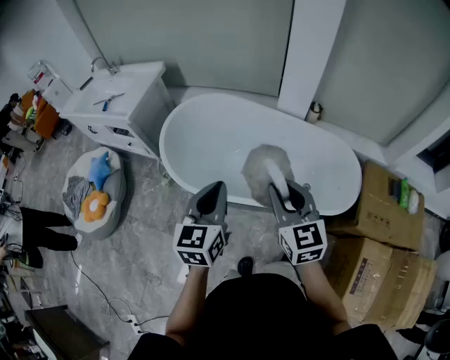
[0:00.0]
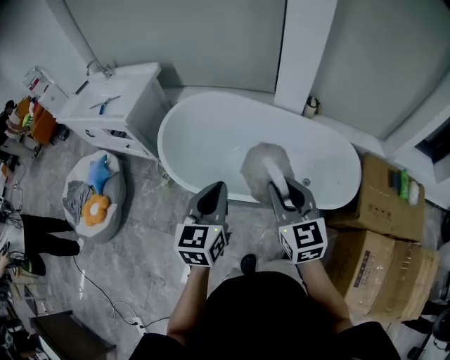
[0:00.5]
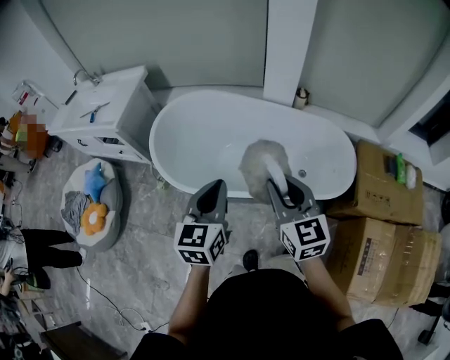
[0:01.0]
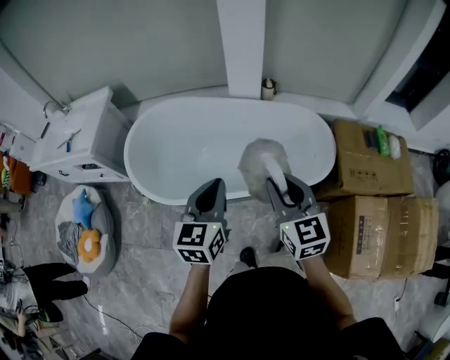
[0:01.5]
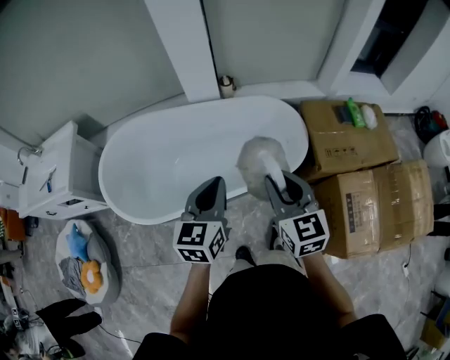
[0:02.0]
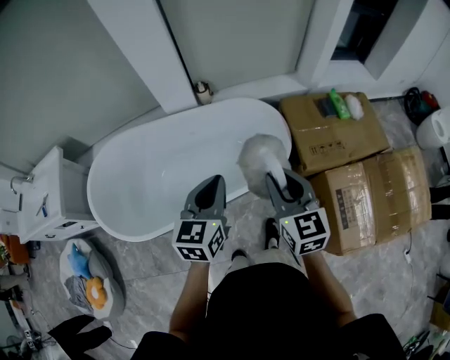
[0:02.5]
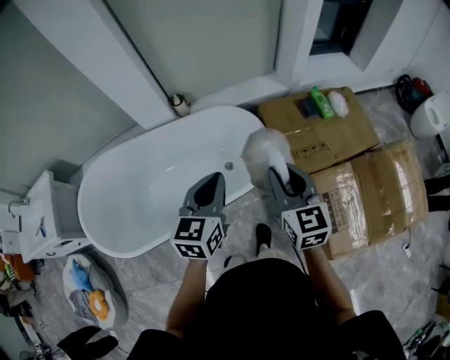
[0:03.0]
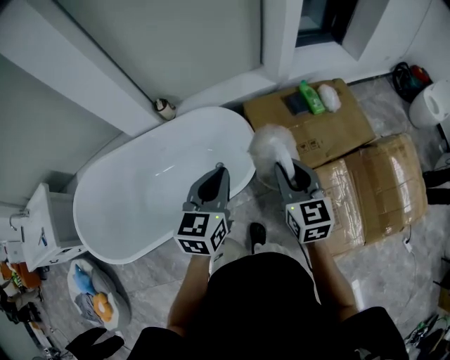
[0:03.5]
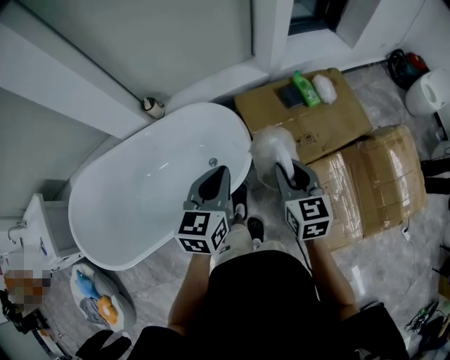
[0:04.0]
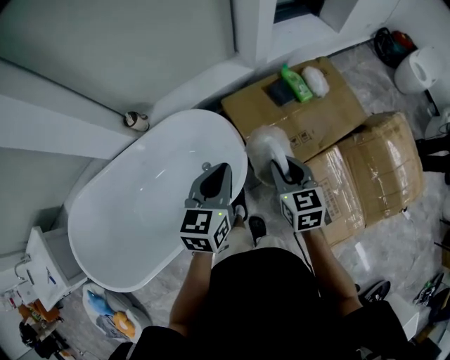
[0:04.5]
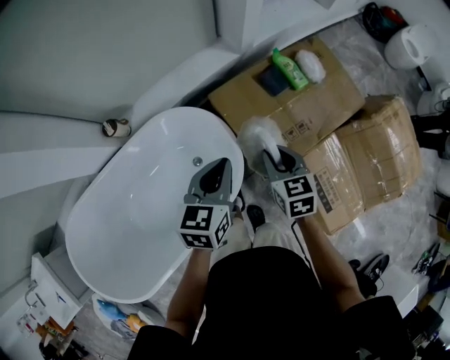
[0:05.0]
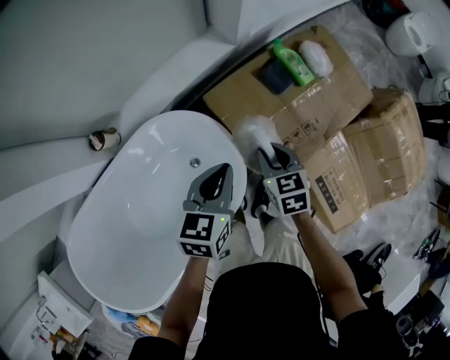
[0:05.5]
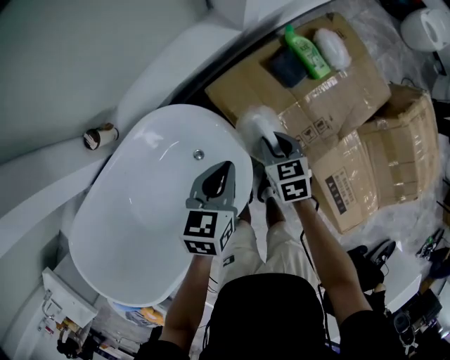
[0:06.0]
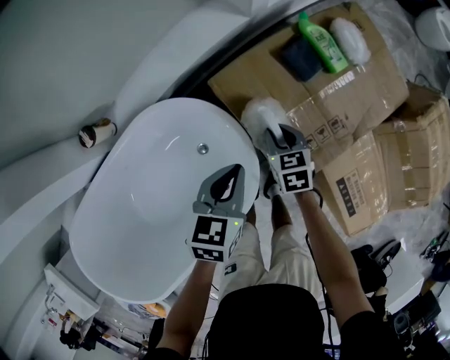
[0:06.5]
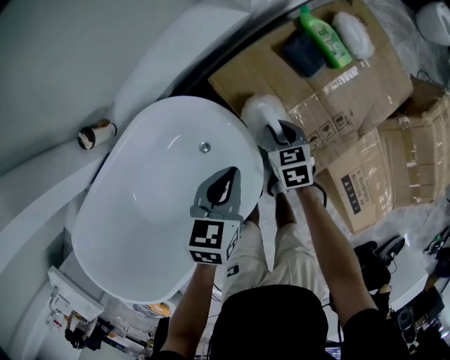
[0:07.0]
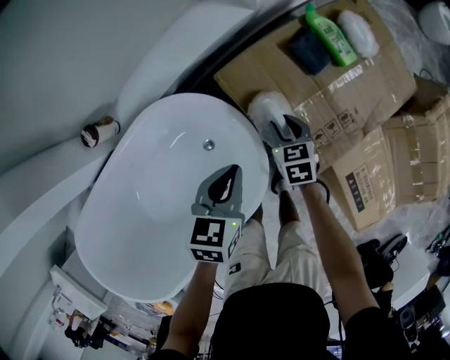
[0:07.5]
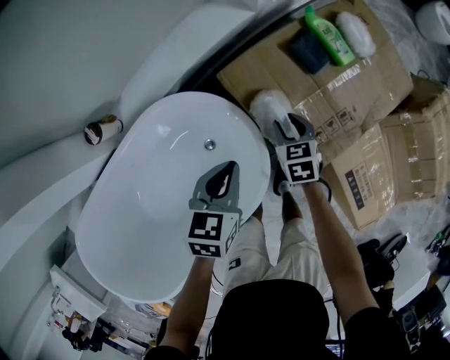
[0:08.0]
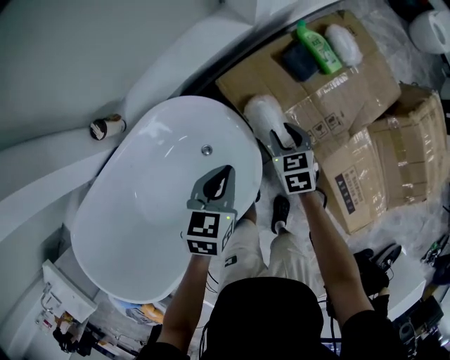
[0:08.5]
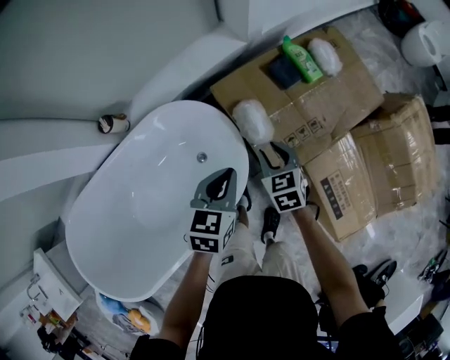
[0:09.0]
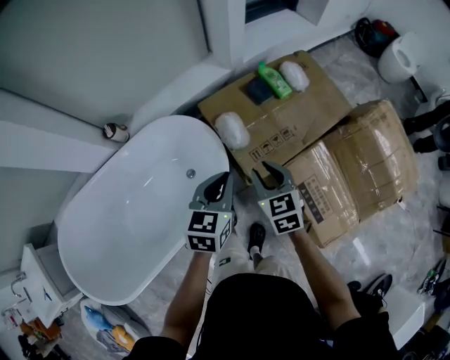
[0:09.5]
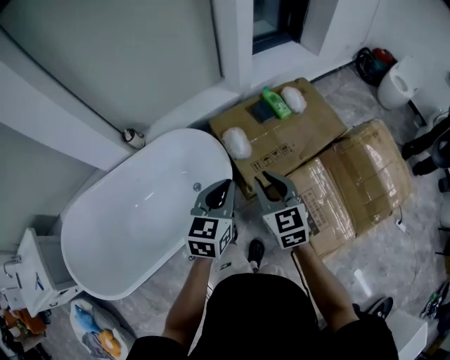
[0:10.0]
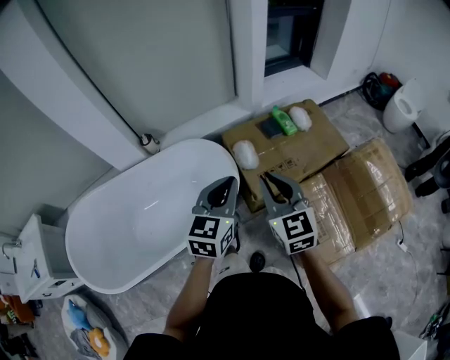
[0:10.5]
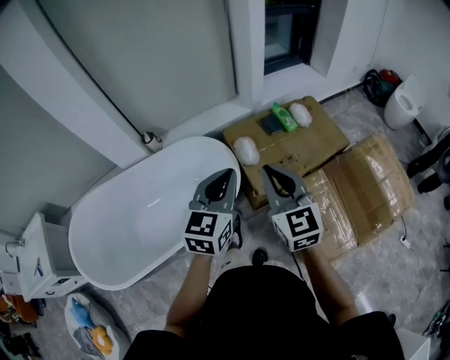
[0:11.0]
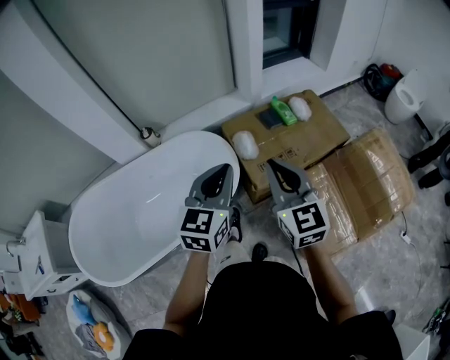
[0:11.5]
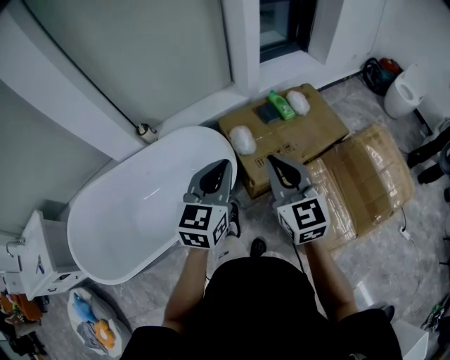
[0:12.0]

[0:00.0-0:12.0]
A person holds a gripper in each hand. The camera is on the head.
0:00.0 to 0:02.0: The left gripper shifts by about 25 cm, and swivels roughly 30 degrees; the right gripper shifts by roughly 20 cm, and turns by about 30 degrees.
0:02.0 to 0:04.0: The two grippers travel together, to the right and forward, approximately 40 cm. The right gripper rotates roughly 20 degrees.
0:04.0 to 0:06.0: The left gripper moves forward and downward, roughly 35 cm, and turns by roughly 30 degrees. Meanwhile the right gripper goes approximately 40 cm downward and forward, and swivels approximately 30 degrees.
0:06.0 to 0:08.0: The right gripper goes approximately 10 cm downward, while the left gripper travels downward by some 5 cm.
0:08.0 to 0:10.0: The left gripper shifts about 35 cm upward, backward and to the right, and changes its angle by about 30 degrees. The right gripper moves upward and backward, roughly 50 cm, and angles its fingers upward, by roughly 30 degrees.
0:10.0 to 0:12.0: The left gripper is displaced upward by about 10 cm, while the right gripper travels upward and backward by some 15 cm.

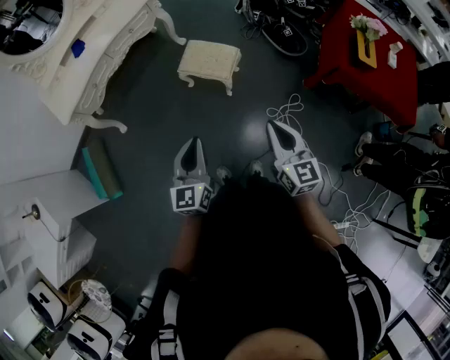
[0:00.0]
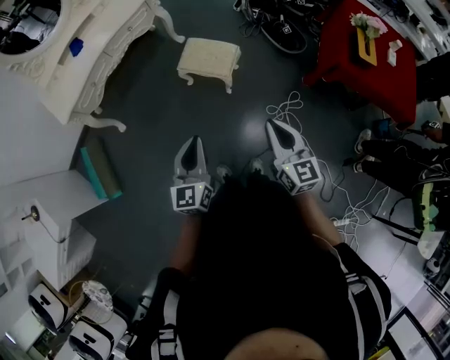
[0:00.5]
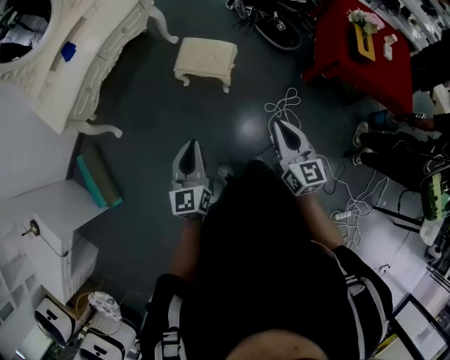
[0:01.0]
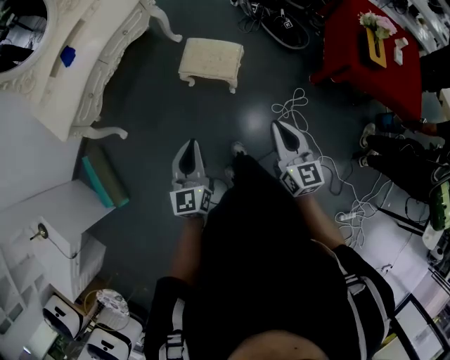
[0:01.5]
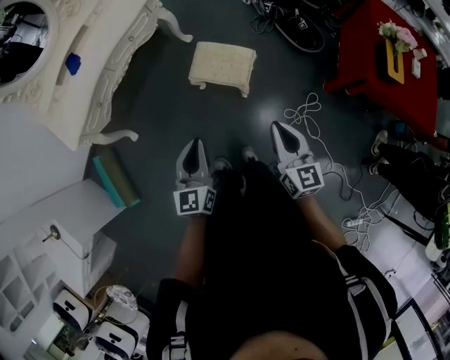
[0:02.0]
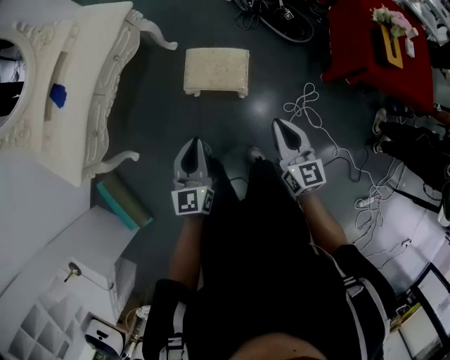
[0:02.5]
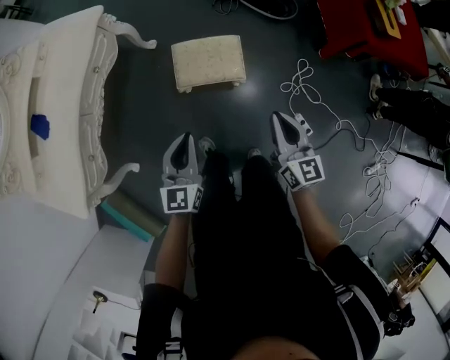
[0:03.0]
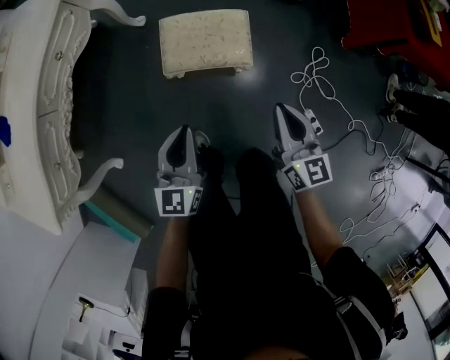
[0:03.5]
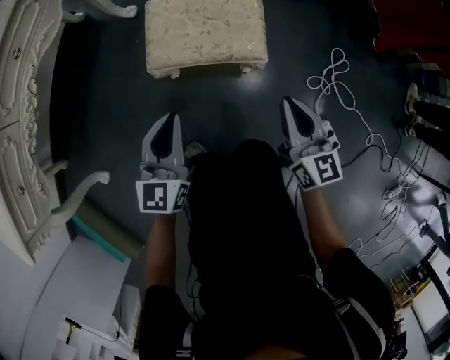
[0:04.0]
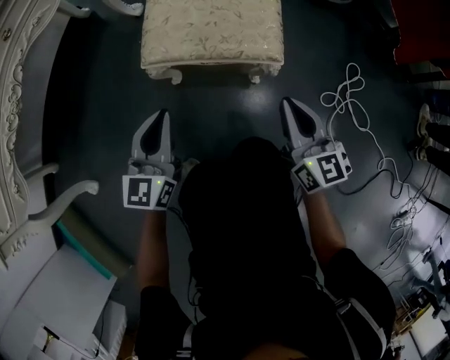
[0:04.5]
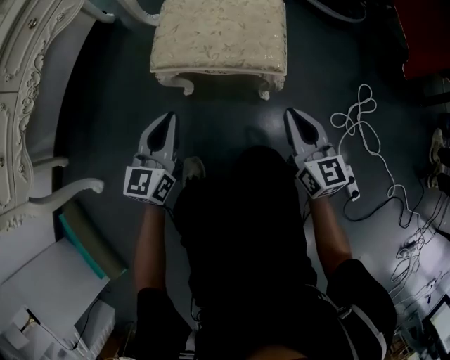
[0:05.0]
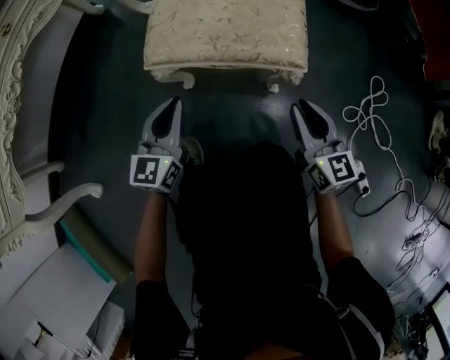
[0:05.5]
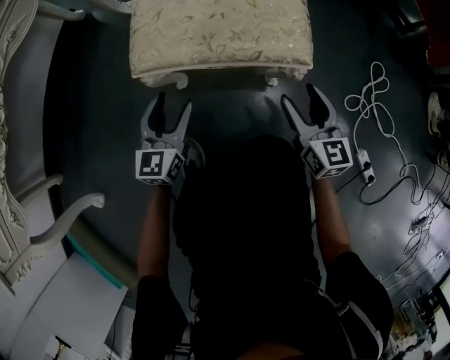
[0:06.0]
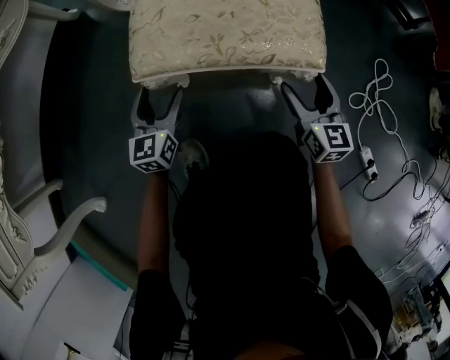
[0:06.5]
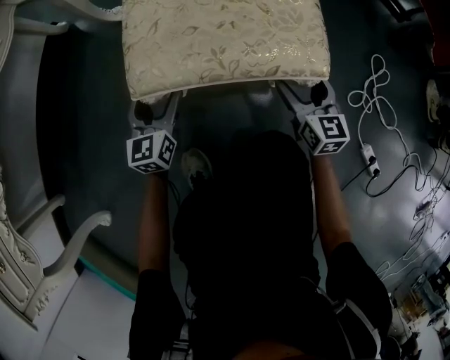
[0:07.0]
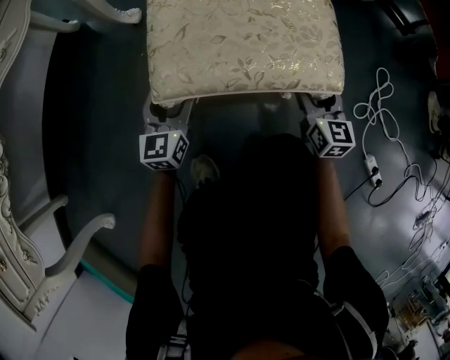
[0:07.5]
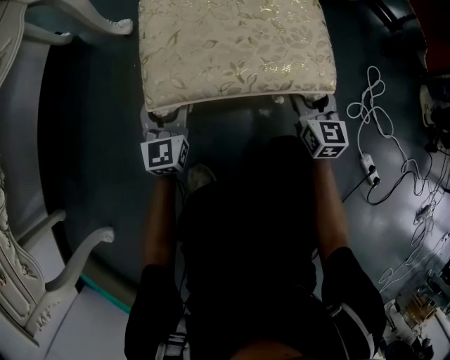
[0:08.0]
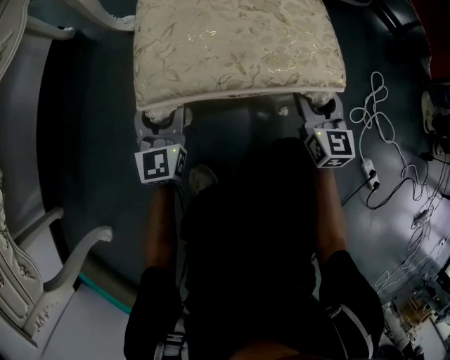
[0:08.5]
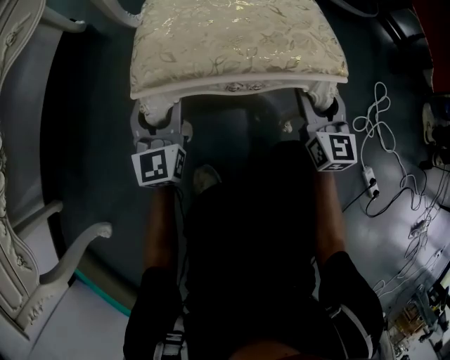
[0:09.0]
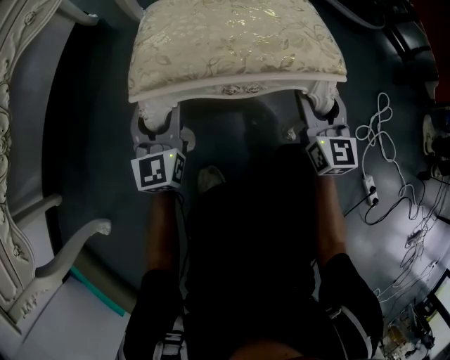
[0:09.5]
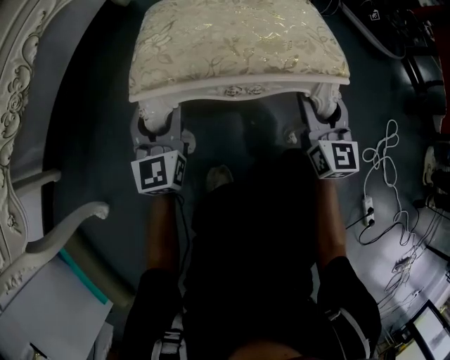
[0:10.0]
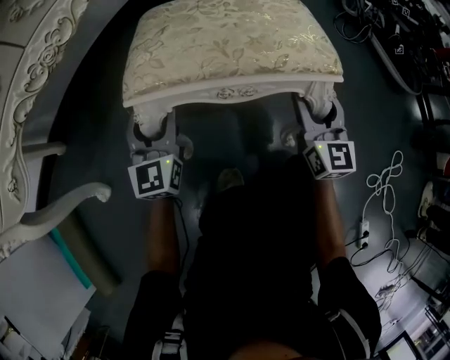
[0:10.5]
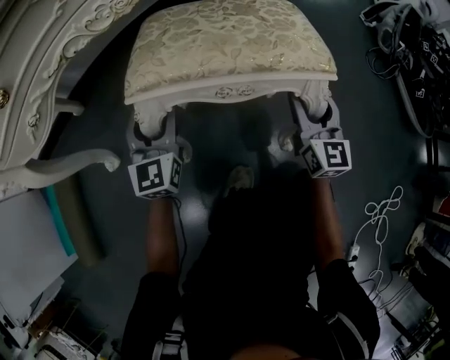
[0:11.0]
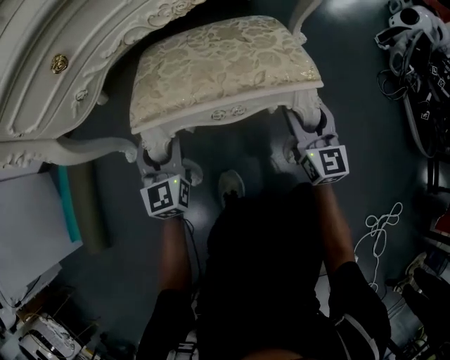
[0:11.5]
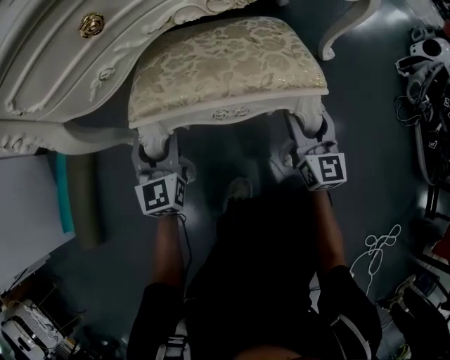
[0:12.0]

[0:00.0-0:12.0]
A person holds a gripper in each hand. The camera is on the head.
0:00.0 to 0:02.0: The two grippers go roughly 15 cm forward.
0:02.0 to 0:04.0: The two grippers go roughly 40 cm downward. The left gripper rotates approximately 30 degrees.
0:04.0 to 0:06.0: Both grippers move downward, some 25 cm. The left gripper opens up. Meanwhile the right gripper opens its fingers.
0:06.0 to 0:08.0: The left gripper shifts about 10 cm forward, while the right gripper travels forward and downward by some 10 cm.
0:08.0 to 0:10.0: Both grippers move to the left and upward, roughly 20 cm.
0:10.0 to 0:12.0: The left gripper swings left and right, about 15 cm each way, with 2 reversals; the right gripper goes left and right, roughly 15 cm each way, reversing 2 times.

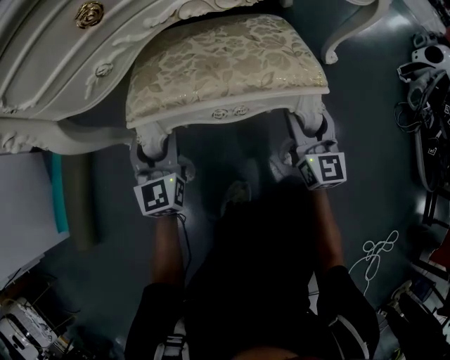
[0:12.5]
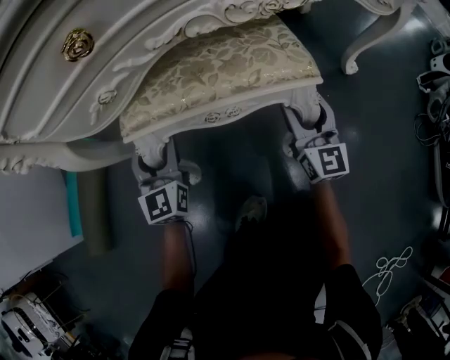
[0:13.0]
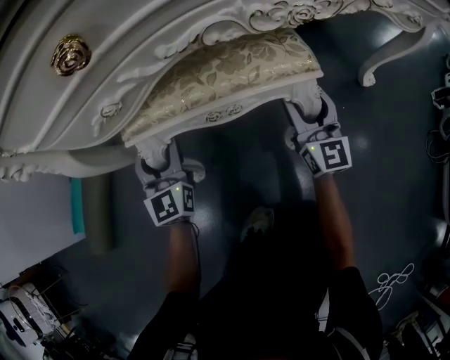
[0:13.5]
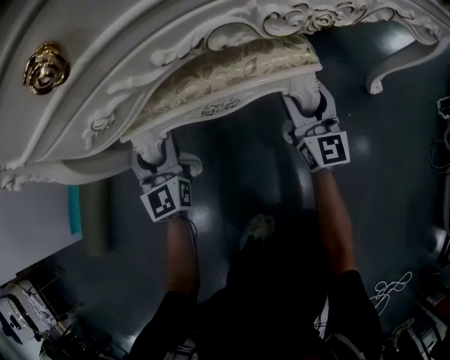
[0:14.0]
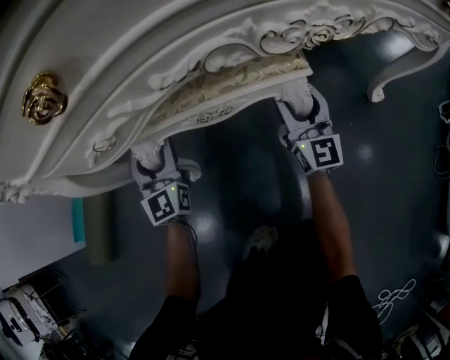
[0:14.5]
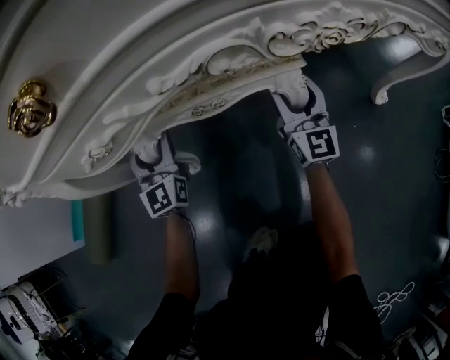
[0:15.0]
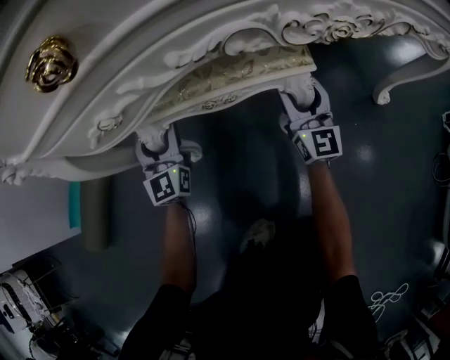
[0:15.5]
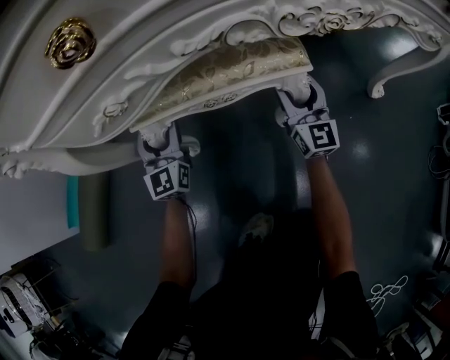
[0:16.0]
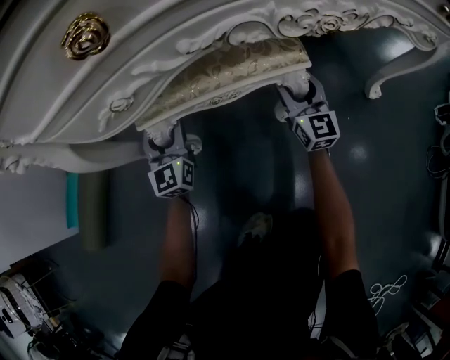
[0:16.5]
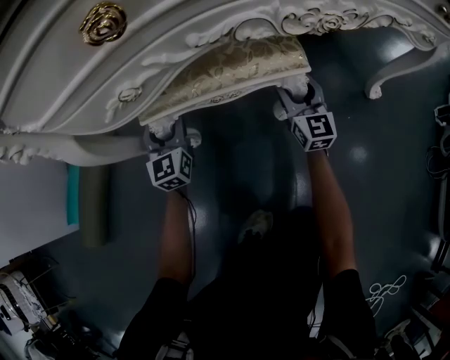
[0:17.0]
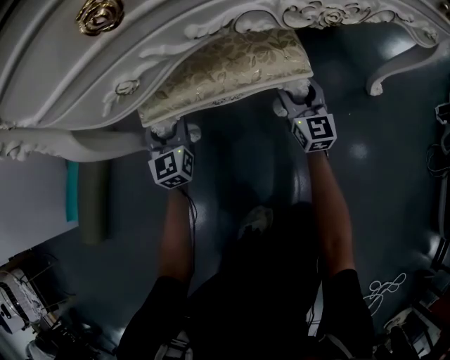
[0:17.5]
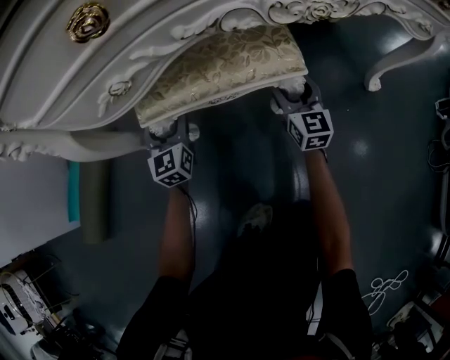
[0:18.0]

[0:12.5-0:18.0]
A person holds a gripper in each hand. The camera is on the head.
0:12.5 to 0:14.5: The right gripper is displaced forward by some 20 cm. The left gripper is displaced forward and to the left by some 15 cm.
0:14.5 to 0:16.0: The grippers make only small movements.
0:16.0 to 0:18.0: The grippers stay close to where they were, moving slightly.
